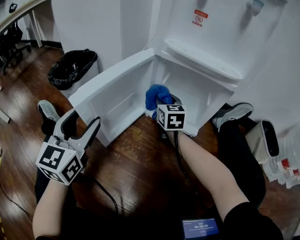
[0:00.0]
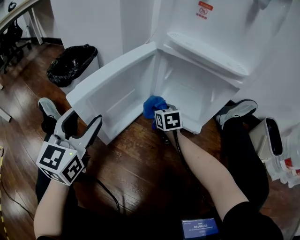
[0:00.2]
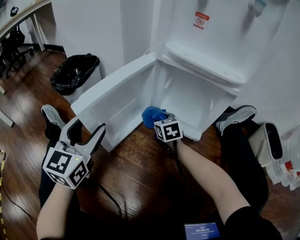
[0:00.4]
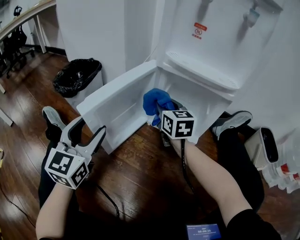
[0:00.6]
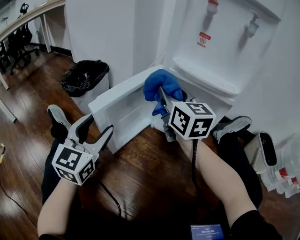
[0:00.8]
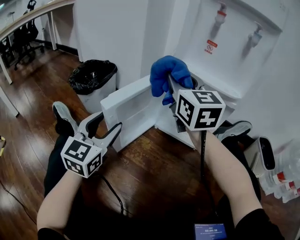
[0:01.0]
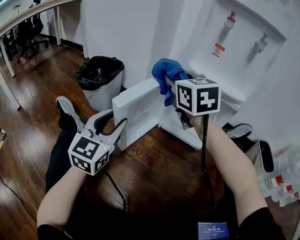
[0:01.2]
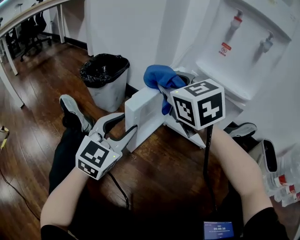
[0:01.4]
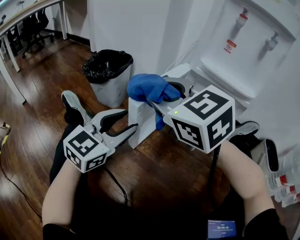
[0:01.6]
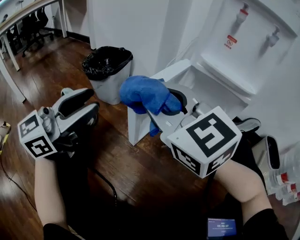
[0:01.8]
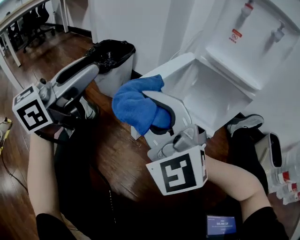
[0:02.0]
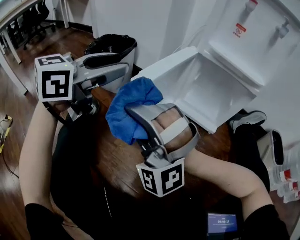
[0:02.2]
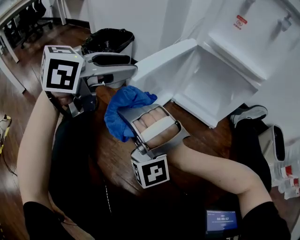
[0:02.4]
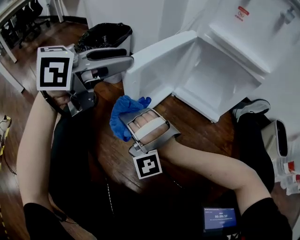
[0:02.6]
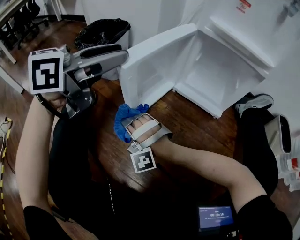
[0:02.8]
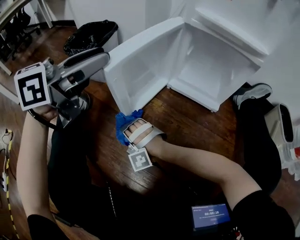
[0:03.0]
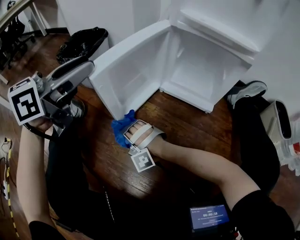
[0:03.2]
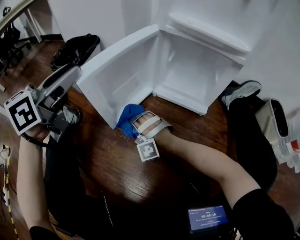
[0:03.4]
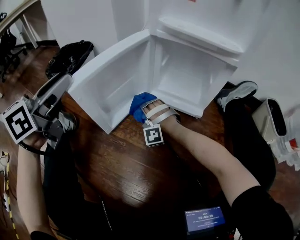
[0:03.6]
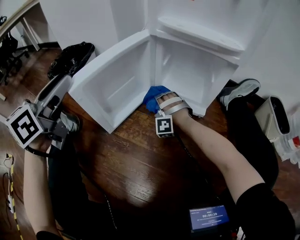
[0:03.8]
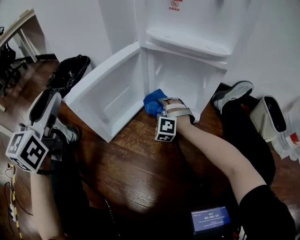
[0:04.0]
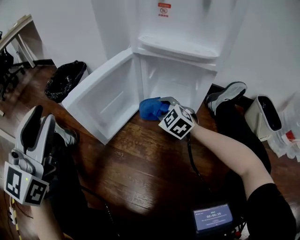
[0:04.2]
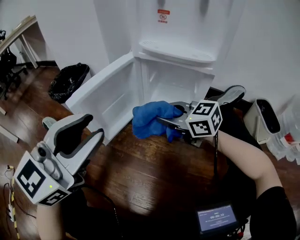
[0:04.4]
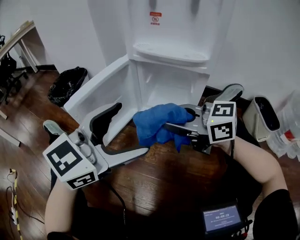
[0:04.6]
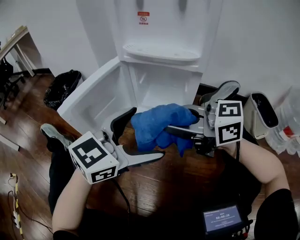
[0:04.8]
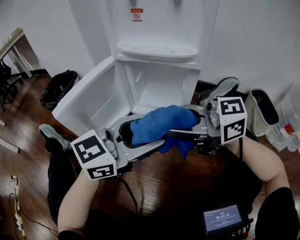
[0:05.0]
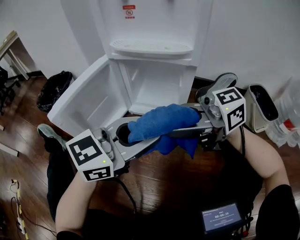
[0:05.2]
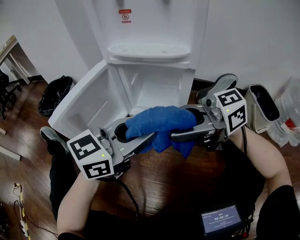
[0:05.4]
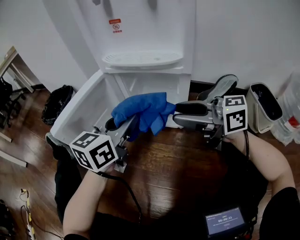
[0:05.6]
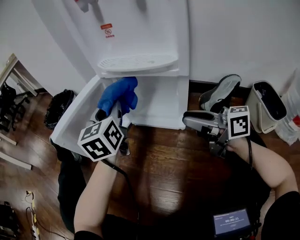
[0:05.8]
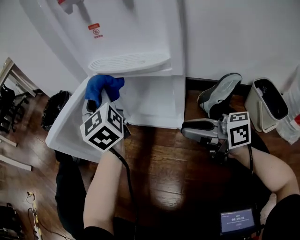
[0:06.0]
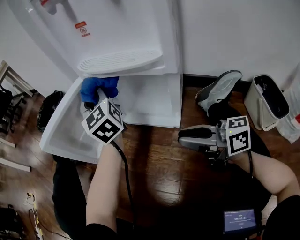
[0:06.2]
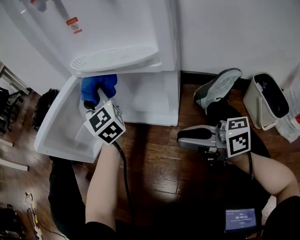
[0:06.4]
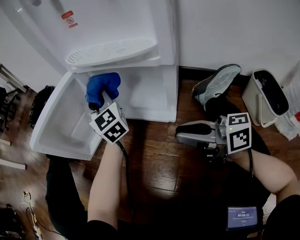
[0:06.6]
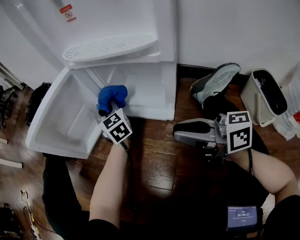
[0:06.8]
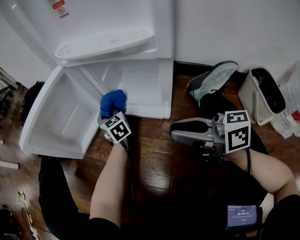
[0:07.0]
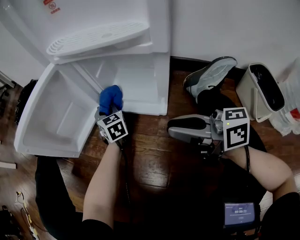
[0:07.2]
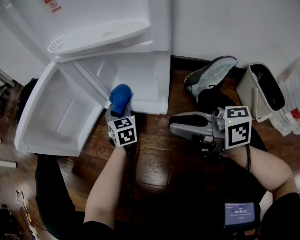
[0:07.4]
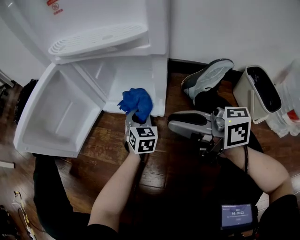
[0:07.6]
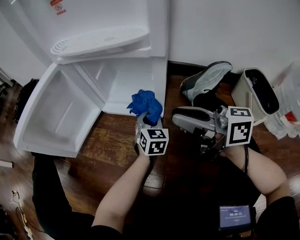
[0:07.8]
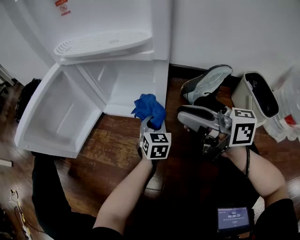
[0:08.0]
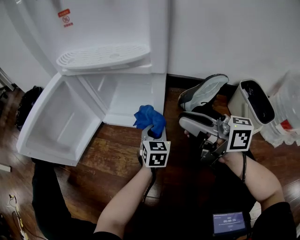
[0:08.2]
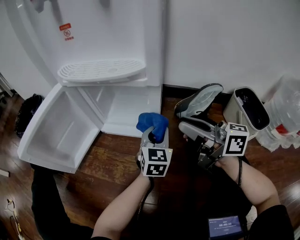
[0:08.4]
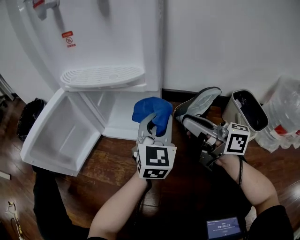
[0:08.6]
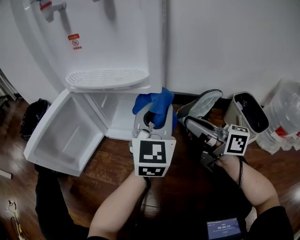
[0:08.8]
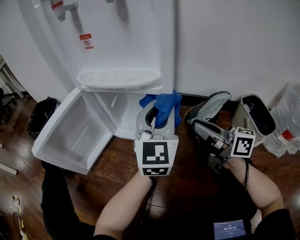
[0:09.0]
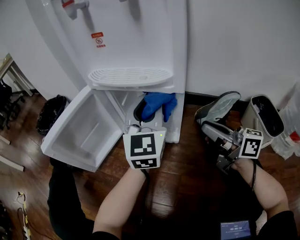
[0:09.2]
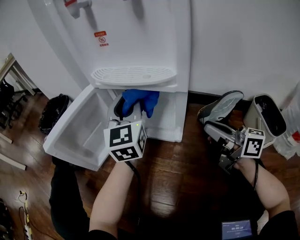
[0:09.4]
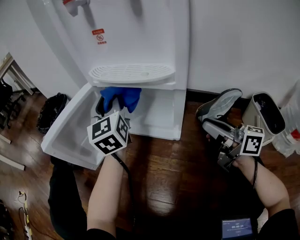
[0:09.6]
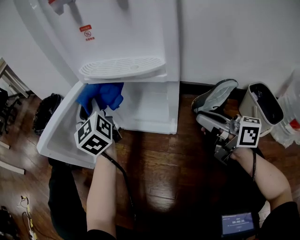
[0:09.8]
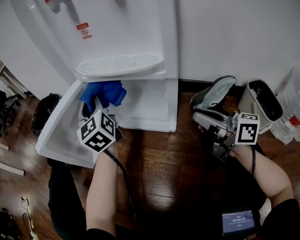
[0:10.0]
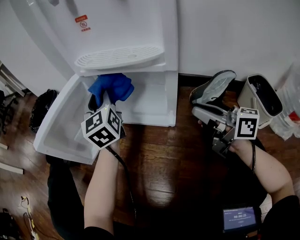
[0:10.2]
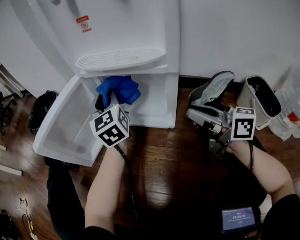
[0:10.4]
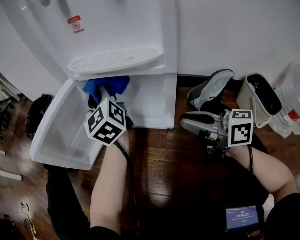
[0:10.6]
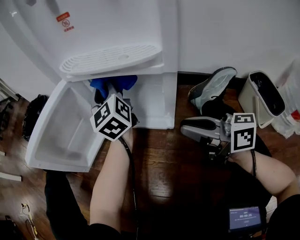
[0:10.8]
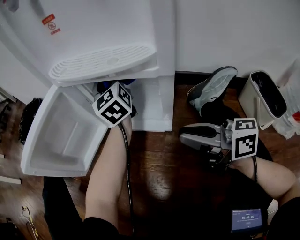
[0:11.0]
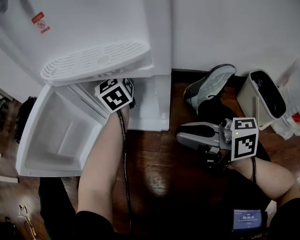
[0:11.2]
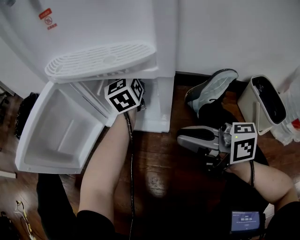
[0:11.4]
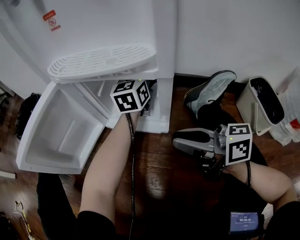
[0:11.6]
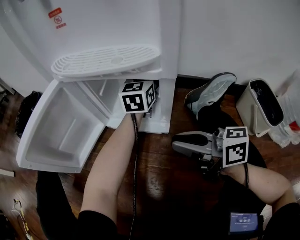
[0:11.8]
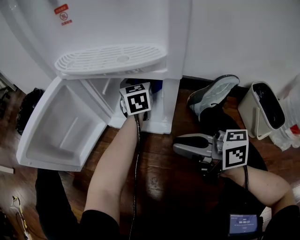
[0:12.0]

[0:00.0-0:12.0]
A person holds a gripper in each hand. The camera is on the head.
0:00.0 to 0:01.6: The left gripper is displaced backward by about 5 cm, and rotates approximately 20 degrees, while the right gripper is displaced upward, backward and to the left by roughly 35 cm, and turns by approximately 40 degrees.
0:01.6 to 0:03.0: The right gripper goes roughly 35 cm downward, and twists about 70 degrees counterclockwise, seen from behind; the left gripper is displaced upward and forward by approximately 10 cm, and turns by some 30 degrees.
0:03.0 to 0:04.4: The left gripper heads to the right, backward and upward, covering some 15 cm, and swivels about 30 degrees. Meanwhile the right gripper heads to the right, upward and forward, covering roughly 35 cm, and twists approximately 90 degrees clockwise, seen from behind.
0:04.4 to 0:06.0: The left gripper ends up about 25 cm from where it was, turns by about 50 degrees, and opens and closes again, while the right gripper travels upward and back again, approximately 10 cm each way, and swivels roughly 30 degrees.
0:06.0 to 0:07.6: The left gripper shifts about 35 cm downward, and tips its fingers downward by some 30 degrees.
0:07.6 to 0:09.0: The left gripper travels upward by about 30 cm, and tilts its fingers roughly 30 degrees upward; the right gripper moves to the right, roughly 10 cm.
0:09.0 to 0:10.4: The left gripper goes roughly 20 cm to the left and forward, and changes its angle by some 30 degrees.
0:10.4 to 0:12.0: The right gripper moves downward and to the left, about 5 cm, while the left gripper shifts roughly 20 cm to the right and downward.

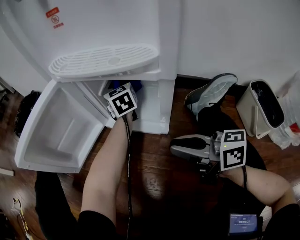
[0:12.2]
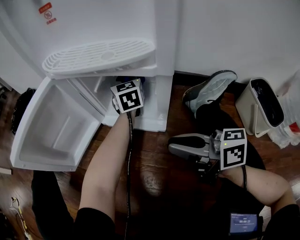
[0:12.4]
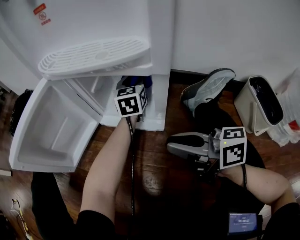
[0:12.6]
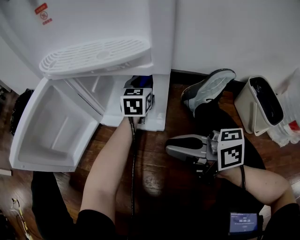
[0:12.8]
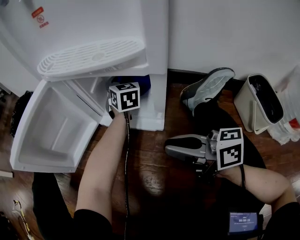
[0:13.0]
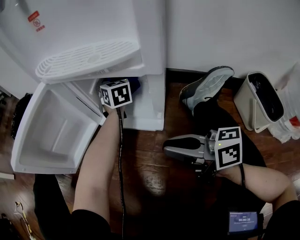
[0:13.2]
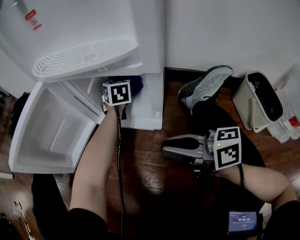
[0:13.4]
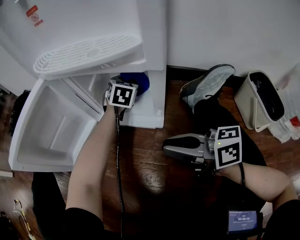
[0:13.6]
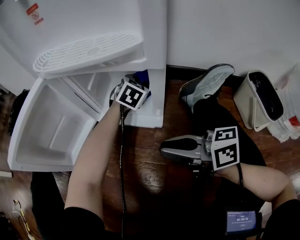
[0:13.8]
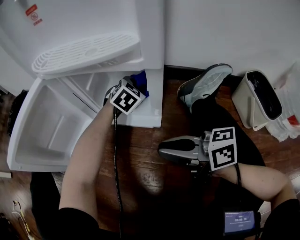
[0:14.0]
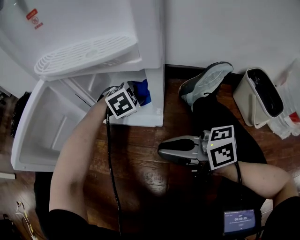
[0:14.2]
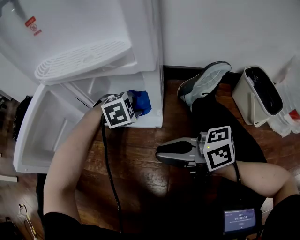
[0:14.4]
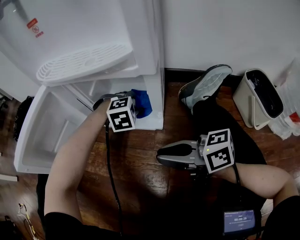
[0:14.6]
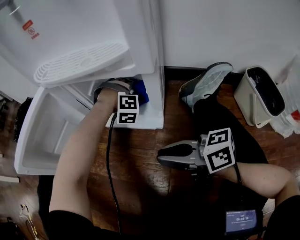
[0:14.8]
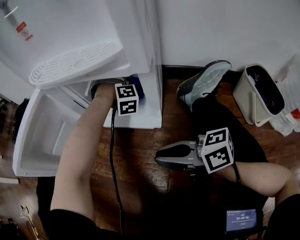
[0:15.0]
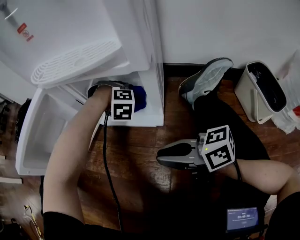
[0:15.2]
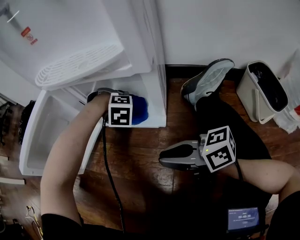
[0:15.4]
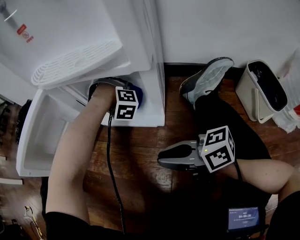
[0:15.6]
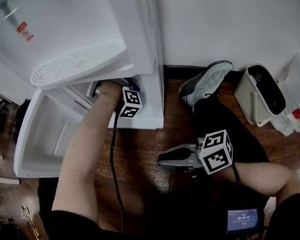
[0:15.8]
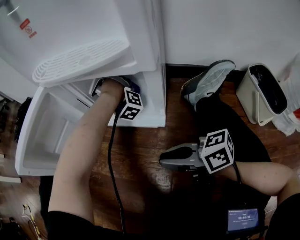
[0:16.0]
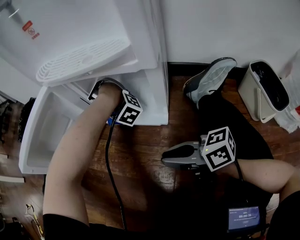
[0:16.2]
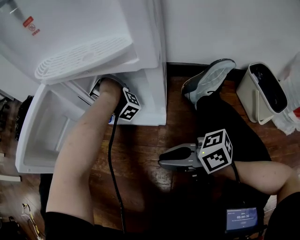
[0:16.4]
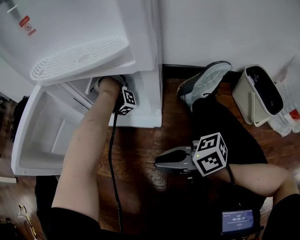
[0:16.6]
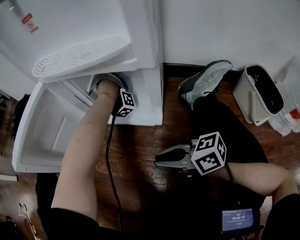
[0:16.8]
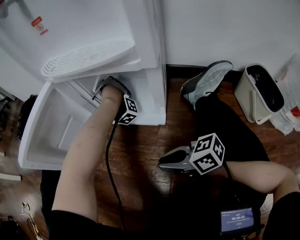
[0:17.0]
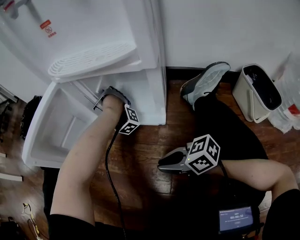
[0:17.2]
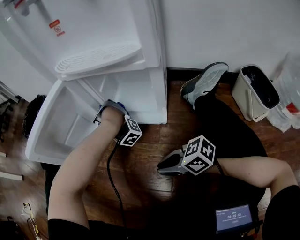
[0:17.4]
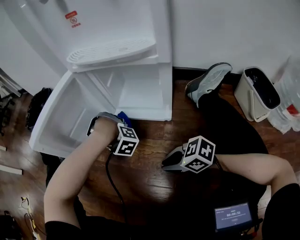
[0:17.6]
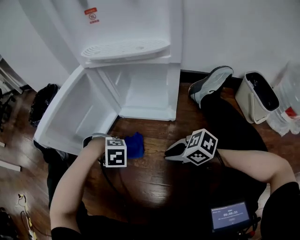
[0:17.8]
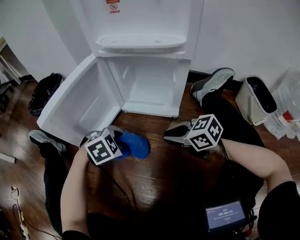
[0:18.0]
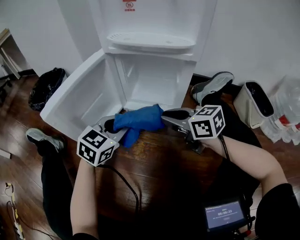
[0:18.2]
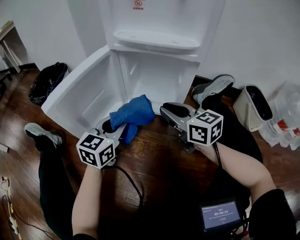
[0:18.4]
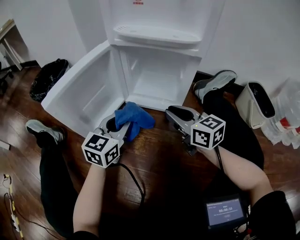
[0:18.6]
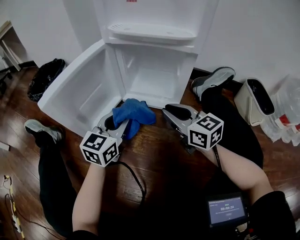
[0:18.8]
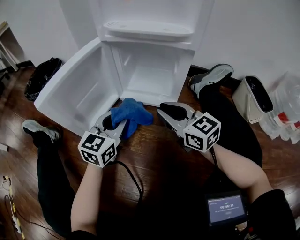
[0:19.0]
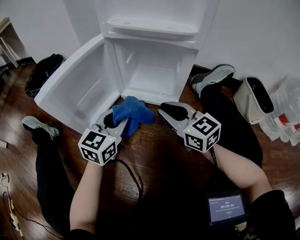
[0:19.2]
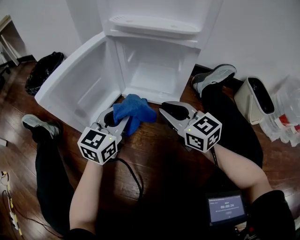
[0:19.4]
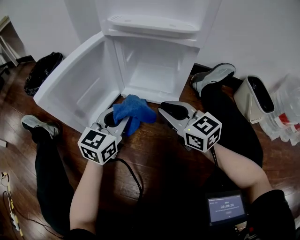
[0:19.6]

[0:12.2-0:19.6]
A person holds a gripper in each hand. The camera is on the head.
0:12.2 to 0:13.6: The left gripper goes left and right, about 10 cm each way, reversing 2 times, and rotates some 40 degrees.
0:13.6 to 0:15.2: The left gripper twists roughly 80 degrees clockwise, seen from behind.
0:15.2 to 0:16.6: The left gripper shifts by some 10 cm, and tips its fingers upward by about 40 degrees.
0:16.6 to 0:18.2: The right gripper shifts by about 10 cm, and changes its angle by some 30 degrees; the left gripper shifts by about 35 cm, and changes its angle by some 130 degrees.
0:18.2 to 0:19.6: The left gripper swivels about 20 degrees, while the right gripper rotates some 20 degrees.

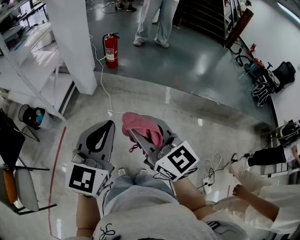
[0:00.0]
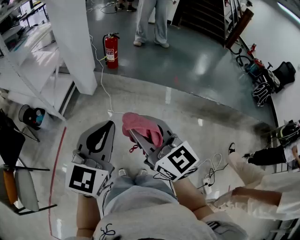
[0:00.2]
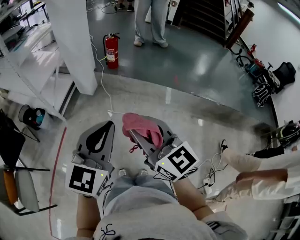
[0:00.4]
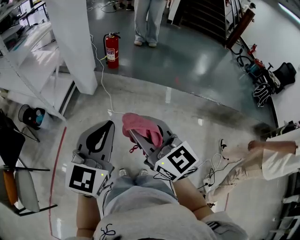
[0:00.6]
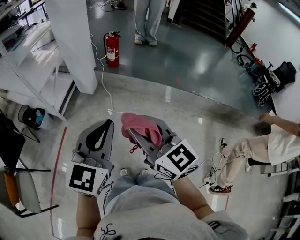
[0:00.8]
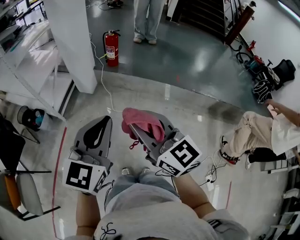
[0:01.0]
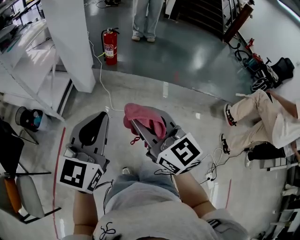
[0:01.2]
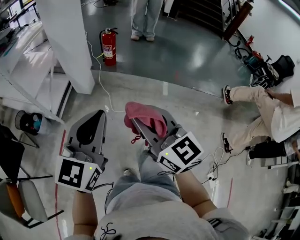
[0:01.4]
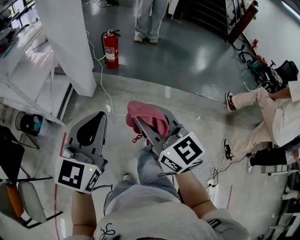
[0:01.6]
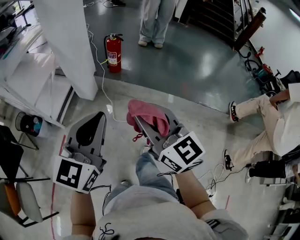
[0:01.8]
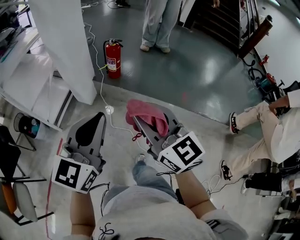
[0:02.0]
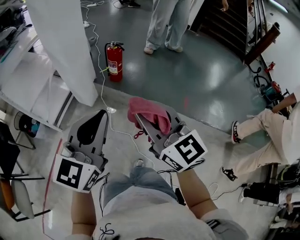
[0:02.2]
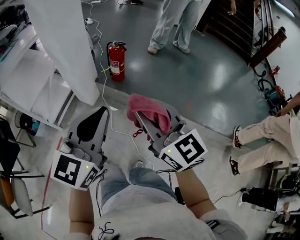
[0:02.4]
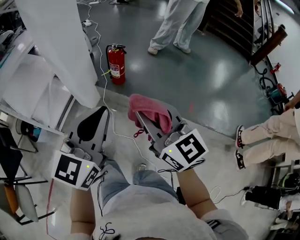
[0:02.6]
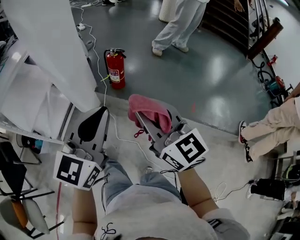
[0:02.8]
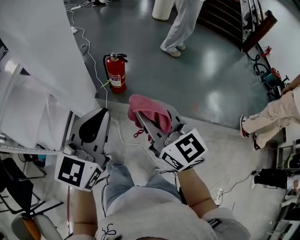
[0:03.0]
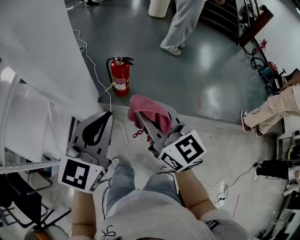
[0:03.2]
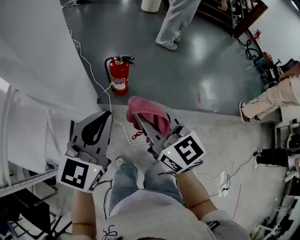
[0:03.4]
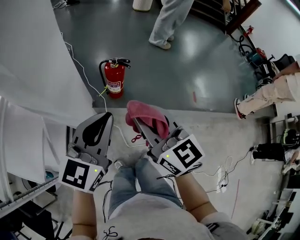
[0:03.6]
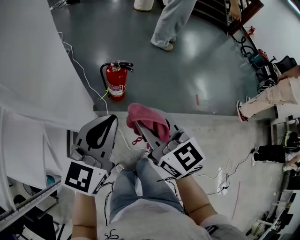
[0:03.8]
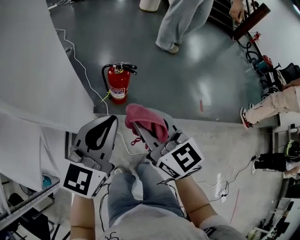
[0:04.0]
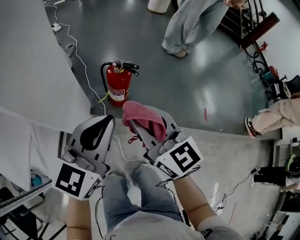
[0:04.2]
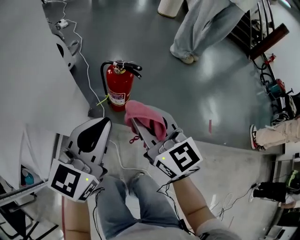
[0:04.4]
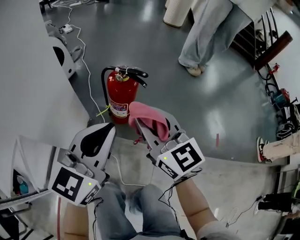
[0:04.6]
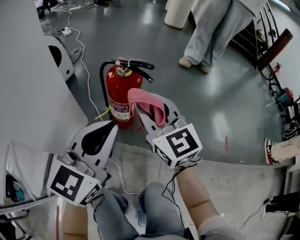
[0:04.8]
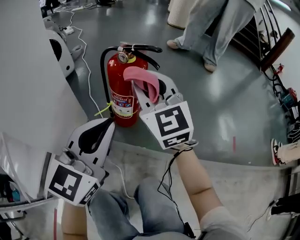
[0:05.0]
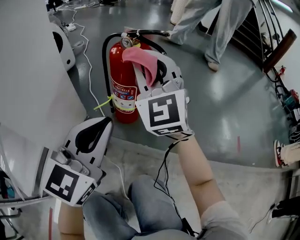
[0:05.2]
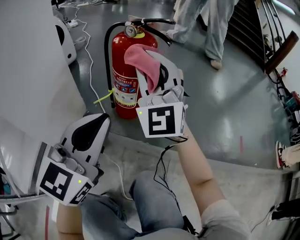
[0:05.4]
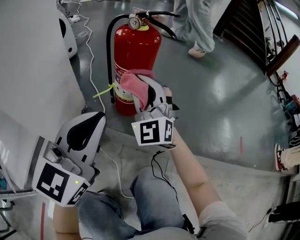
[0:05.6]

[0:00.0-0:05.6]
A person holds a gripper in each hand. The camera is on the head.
0:00.0 to 0:01.4: The left gripper goes some 10 cm forward and to the left. The right gripper travels forward by some 10 cm.
0:01.4 to 0:02.8: Both grippers move forward, roughly 35 cm.
0:02.8 to 0:04.2: Both grippers move forward, to the left and downward, some 35 cm.
0:04.2 to 0:05.6: The left gripper is displaced downward by approximately 30 cm. Meanwhile the right gripper travels downward and forward by approximately 40 cm, and rotates around the line of its fingers by about 50 degrees, counterclockwise from behind.
